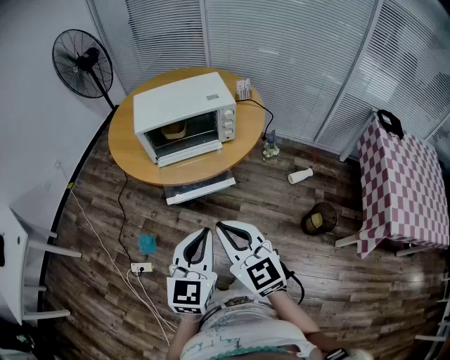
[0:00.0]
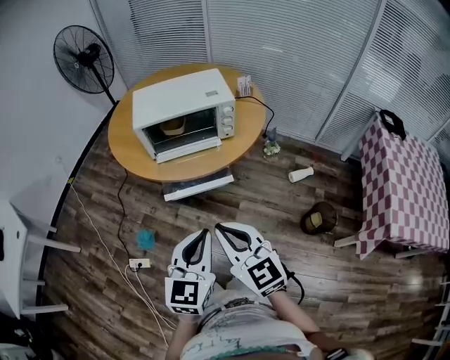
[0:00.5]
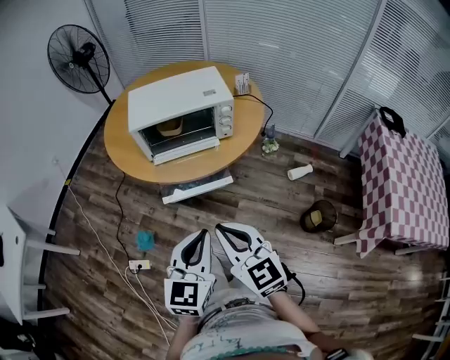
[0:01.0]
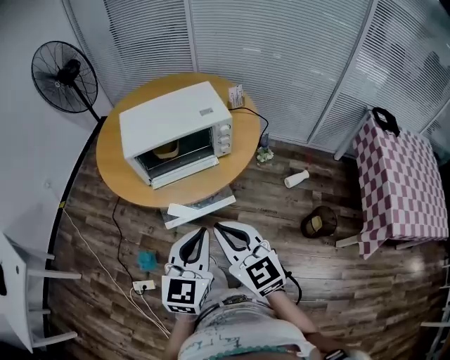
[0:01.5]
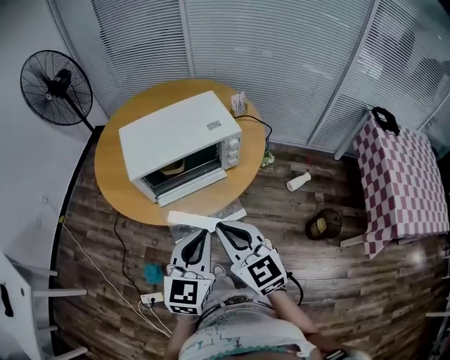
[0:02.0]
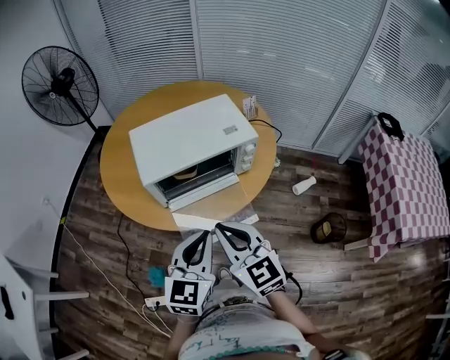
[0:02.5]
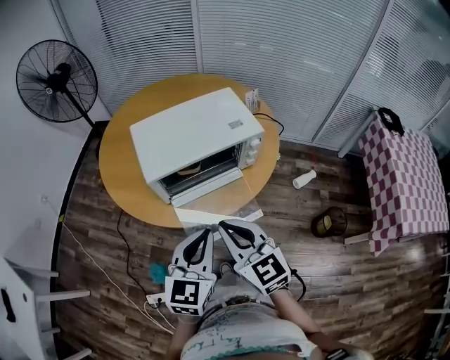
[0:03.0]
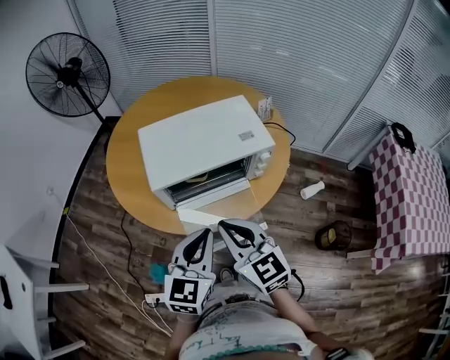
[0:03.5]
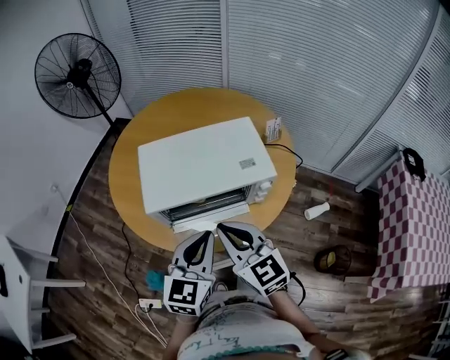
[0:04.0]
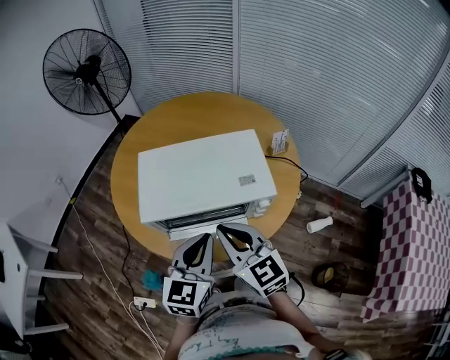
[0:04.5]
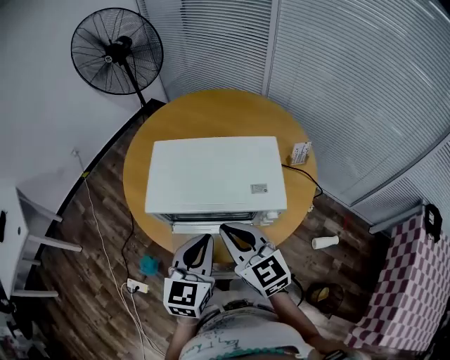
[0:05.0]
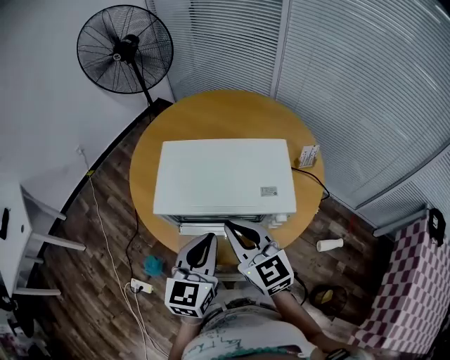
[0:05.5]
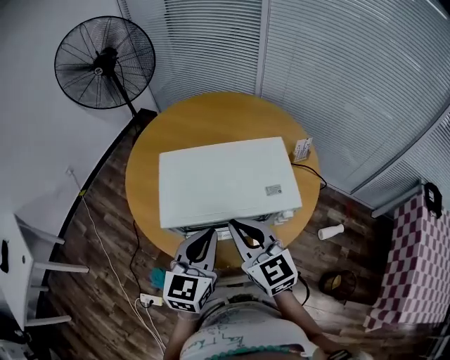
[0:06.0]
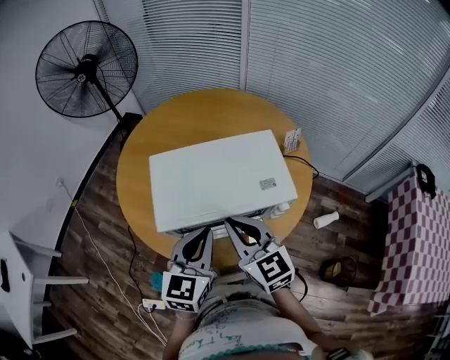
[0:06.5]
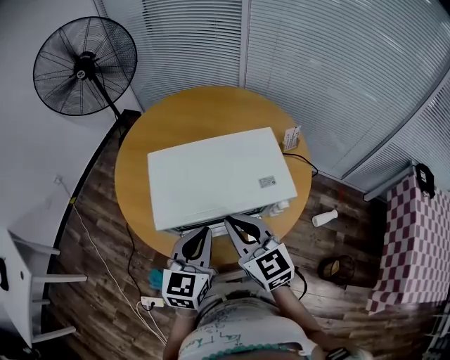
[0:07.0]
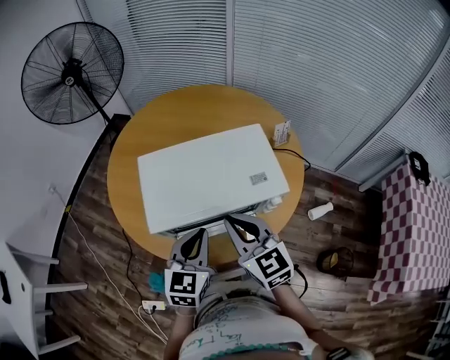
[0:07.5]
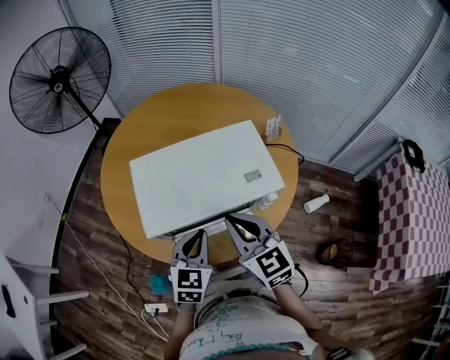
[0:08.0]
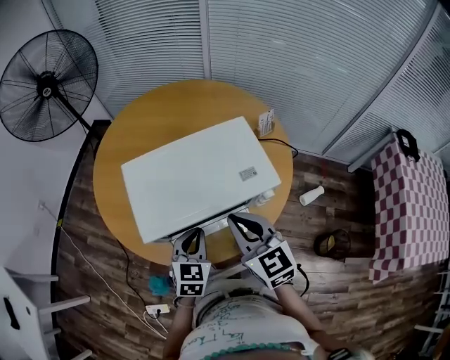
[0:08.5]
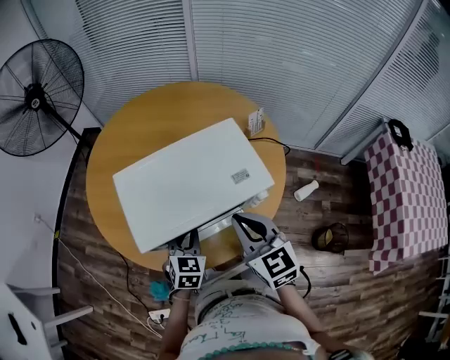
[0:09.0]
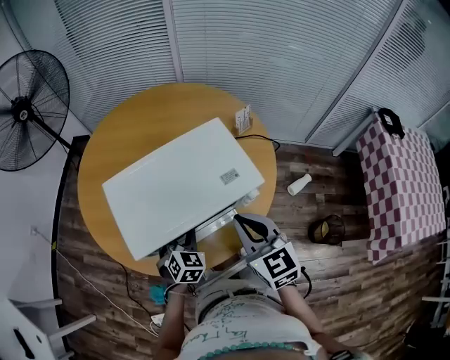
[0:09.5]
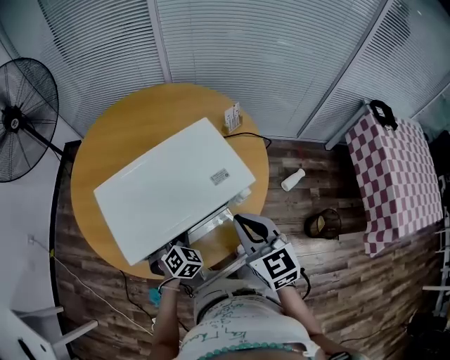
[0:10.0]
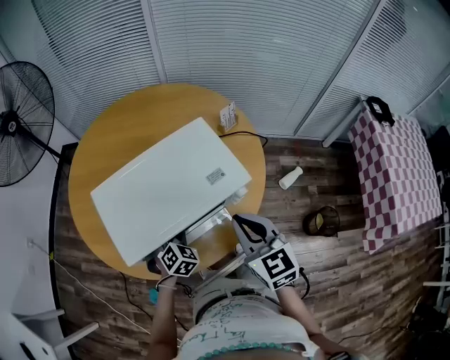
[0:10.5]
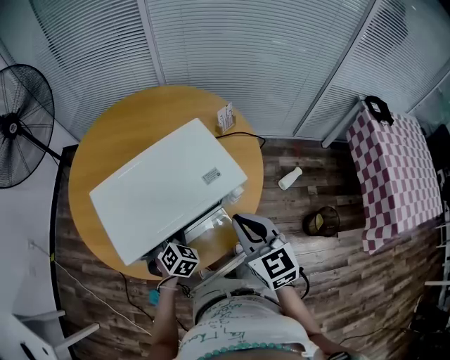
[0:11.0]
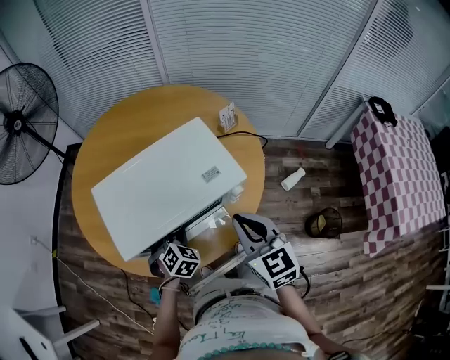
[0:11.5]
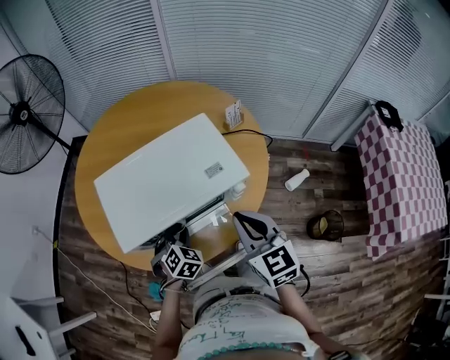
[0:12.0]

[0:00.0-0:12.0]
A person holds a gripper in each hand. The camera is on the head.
0:00.0 to 0:02.0: Both grippers move forward, approximately 20 cm.
0:02.0 to 0:04.0: The grippers both shift forward by some 15 cm.
0:04.0 to 0:06.0: The two grippers go some 10 cm forward.
0:06.0 to 0:08.0: The left gripper travels downward by some 10 cm.
0:08.0 to 0:10.0: The right gripper is displaced to the right by roughly 10 cm, while the left gripper travels downward and forward by roughly 15 cm, swivels roughly 40 degrees, and opens its fingers.
0:10.0 to 0:12.0: The left gripper closes its fingers.

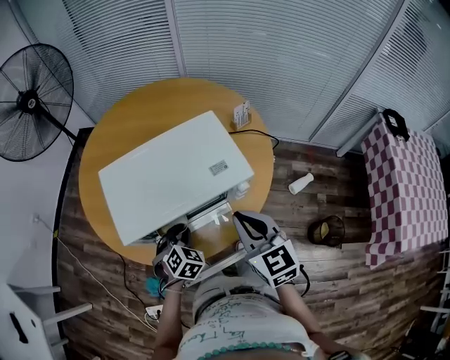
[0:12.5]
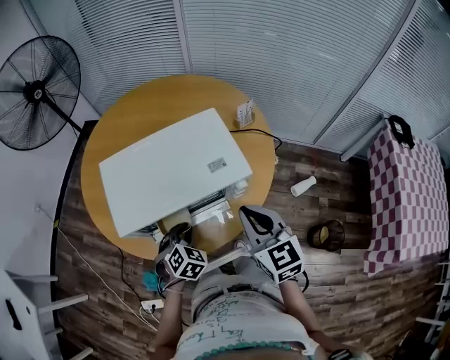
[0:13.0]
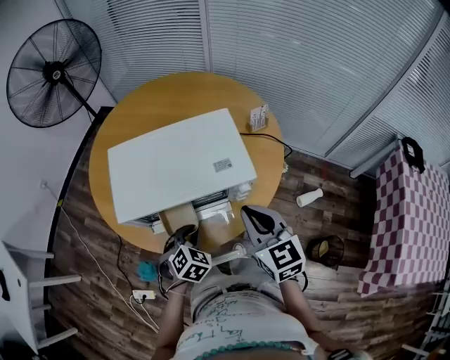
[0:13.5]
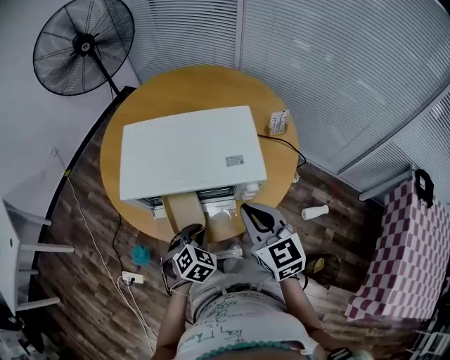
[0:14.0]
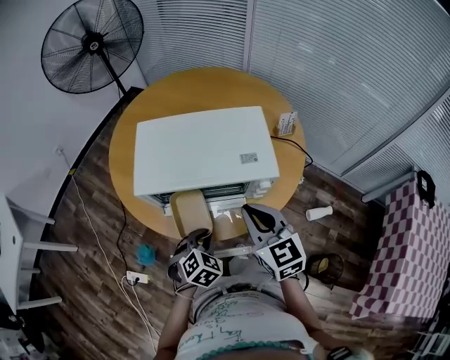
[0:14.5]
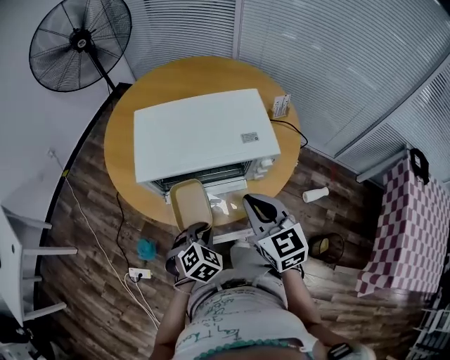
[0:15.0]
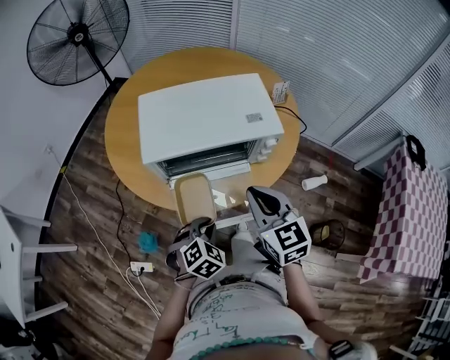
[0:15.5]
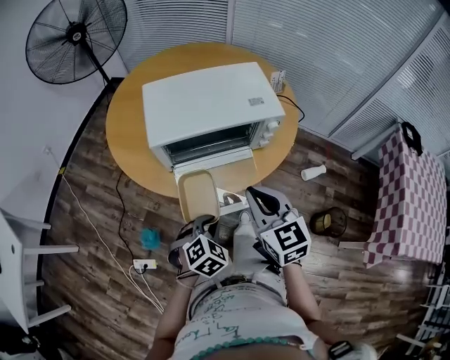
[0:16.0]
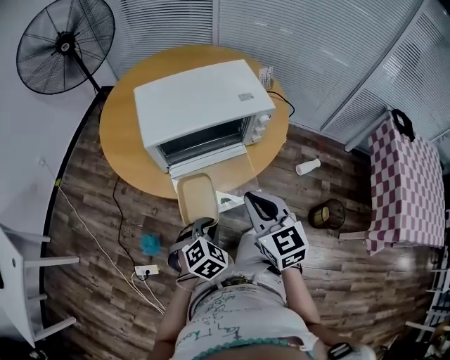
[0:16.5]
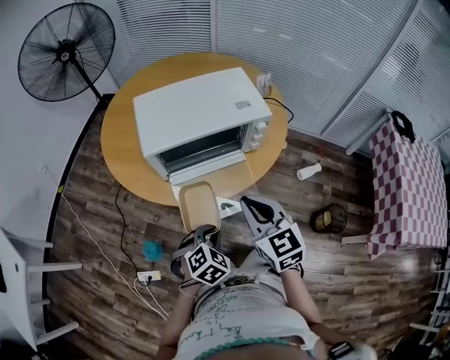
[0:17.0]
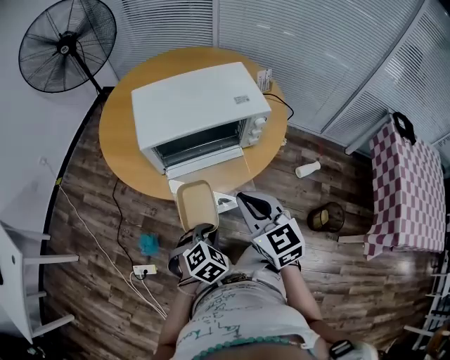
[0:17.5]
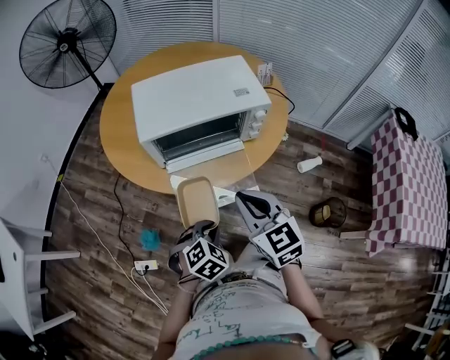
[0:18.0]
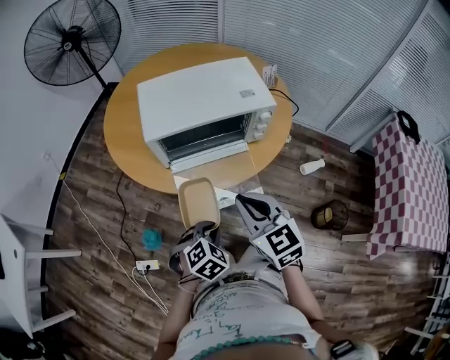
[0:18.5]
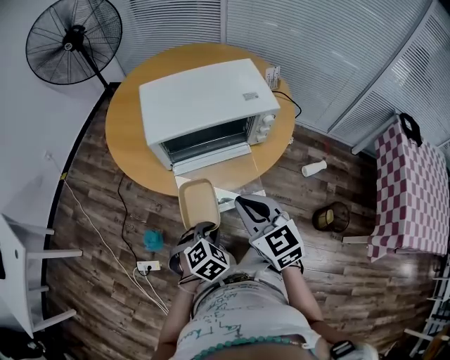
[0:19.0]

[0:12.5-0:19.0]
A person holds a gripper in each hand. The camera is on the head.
0:12.5 to 0:14.5: The left gripper moves backward, approximately 10 cm.
0:14.5 to 0:17.0: The right gripper shifts some 15 cm backward and to the left, while the left gripper is displaced backward by approximately 15 cm.
0:17.0 to 0:19.0: The grippers stay close to where they were, moving slightly.

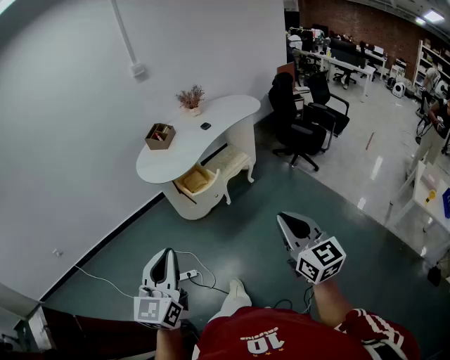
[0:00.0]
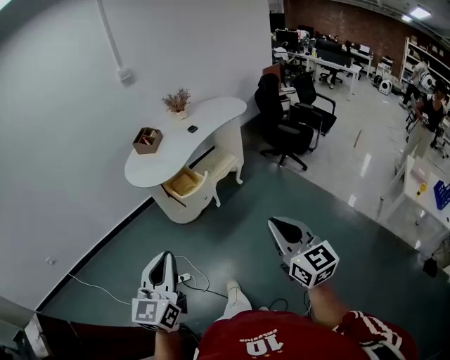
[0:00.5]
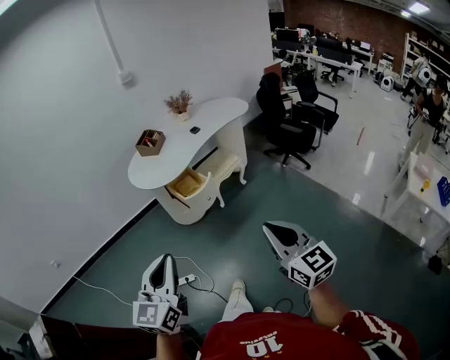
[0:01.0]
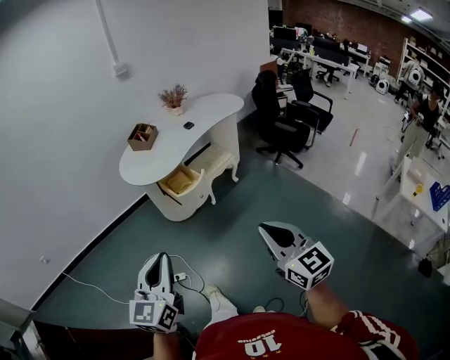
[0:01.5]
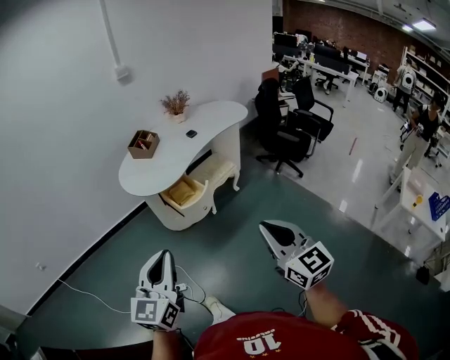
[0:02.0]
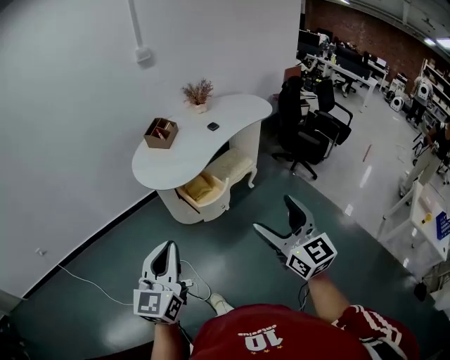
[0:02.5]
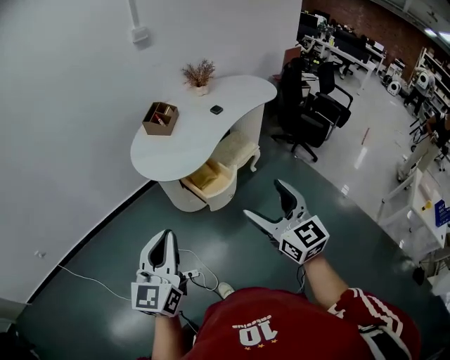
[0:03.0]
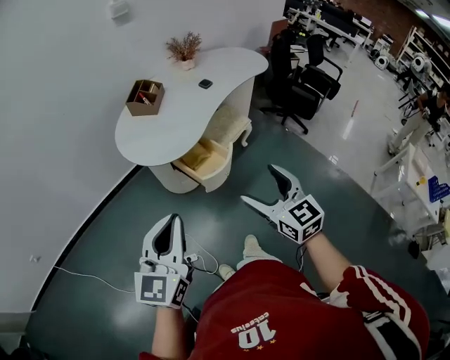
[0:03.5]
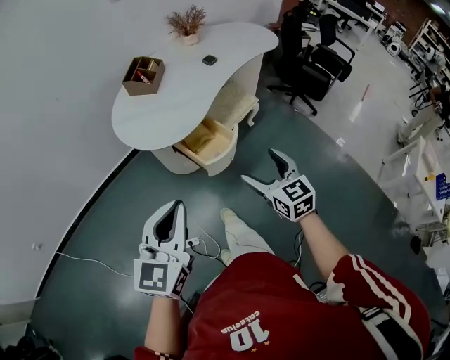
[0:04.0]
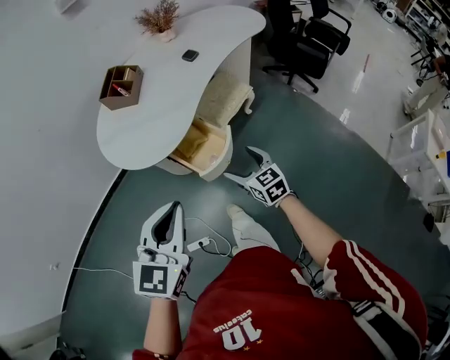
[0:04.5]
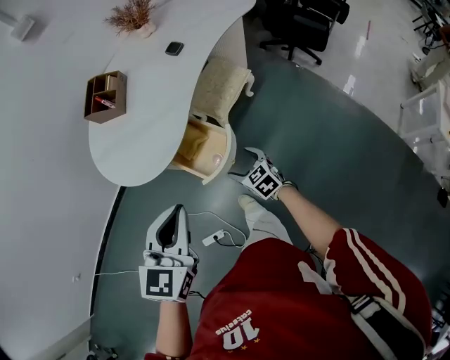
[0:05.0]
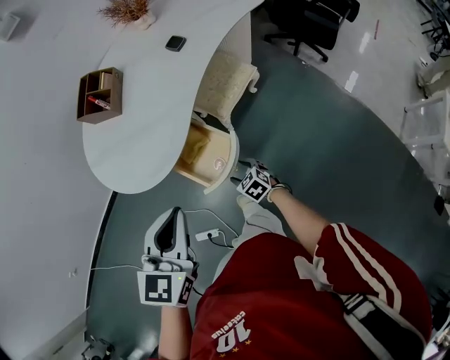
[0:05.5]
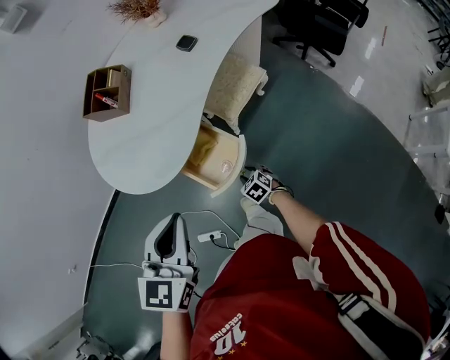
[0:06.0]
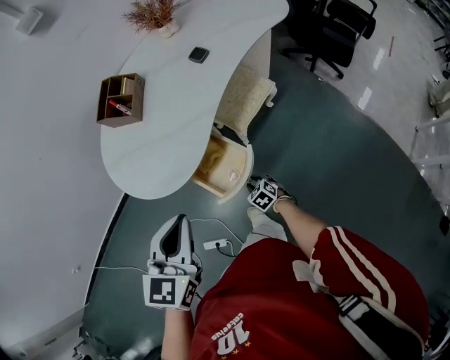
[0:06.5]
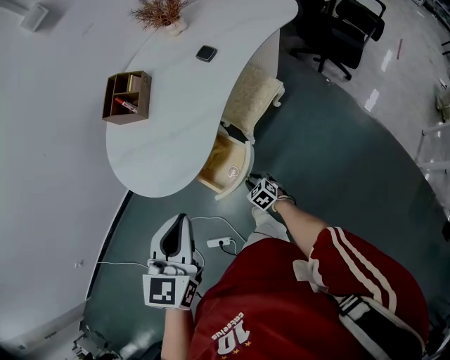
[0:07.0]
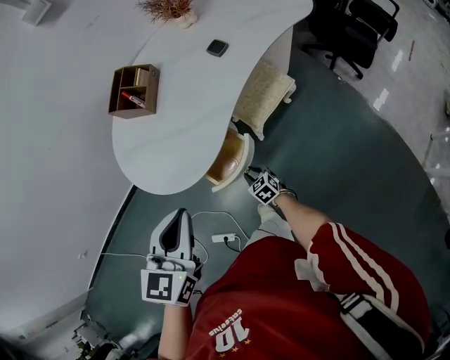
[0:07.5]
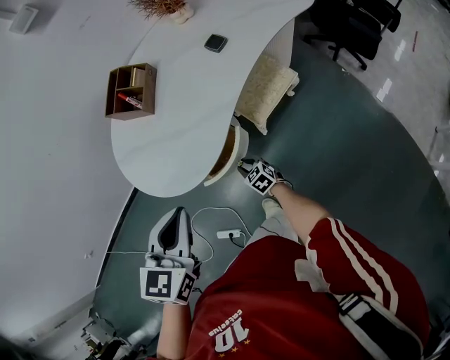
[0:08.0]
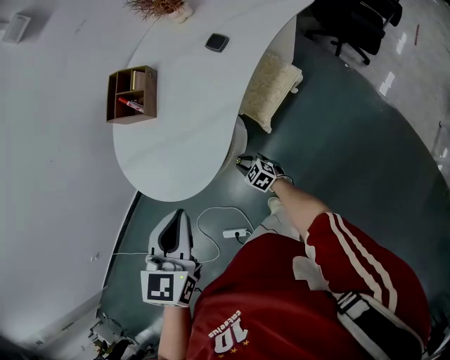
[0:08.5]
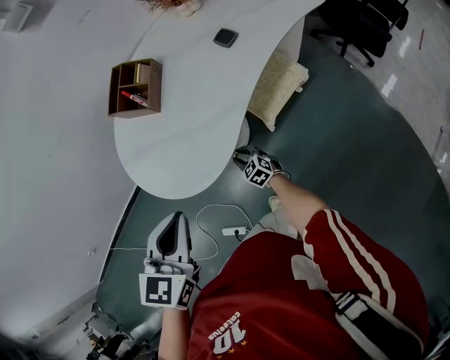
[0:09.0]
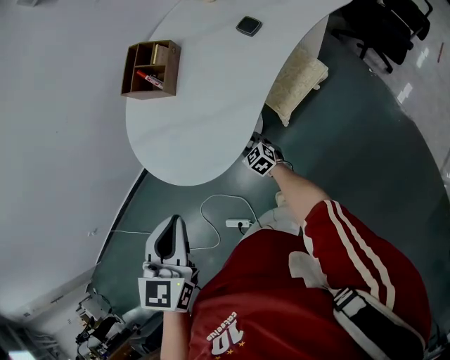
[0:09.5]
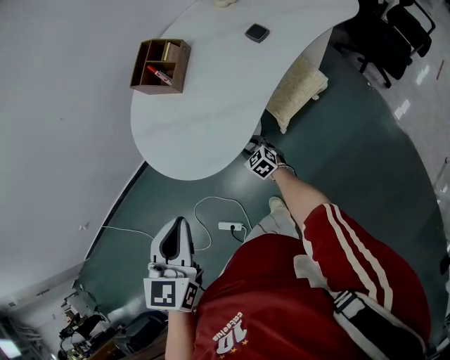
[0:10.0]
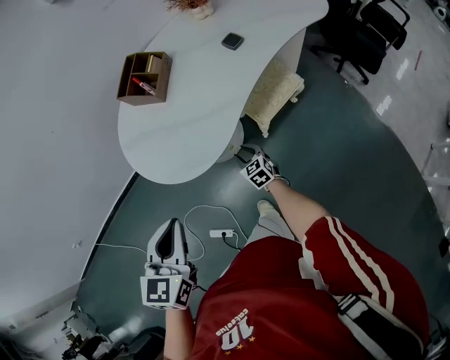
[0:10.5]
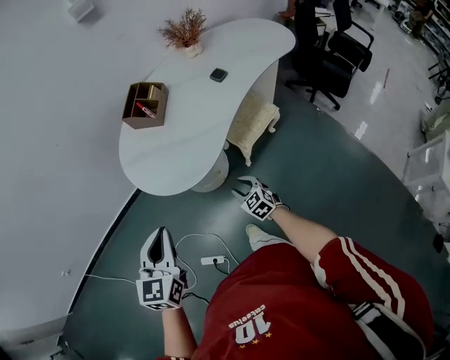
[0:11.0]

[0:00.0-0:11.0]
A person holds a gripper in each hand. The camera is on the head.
0:00.0 to 0:02.0: The right gripper is displaced forward and to the left by roughly 10 cm, while the left gripper moves forward, approximately 10 cm.
0:02.0 to 0:03.5: The left gripper shifts approximately 25 cm forward and to the left. Meanwhile the right gripper moves forward, to the left and downward, about 30 cm, and opens up.
0:03.5 to 0:05.5: The left gripper heads forward, downward and to the right, covering roughly 30 cm, and turns by roughly 30 degrees. Meanwhile the right gripper is displaced downward and forward by some 50 cm, and angles its fingers downward, by approximately 40 degrees.
0:05.5 to 0:07.5: Both grippers move forward, approximately 5 cm. The right gripper closes its fingers.
0:07.5 to 0:09.0: The right gripper heads forward and to the left, covering roughly 10 cm; the left gripper goes some 5 cm forward.
0:09.0 to 0:11.0: The left gripper shifts about 15 cm to the left and backward, while the right gripper moves upward and backward, some 20 cm.
